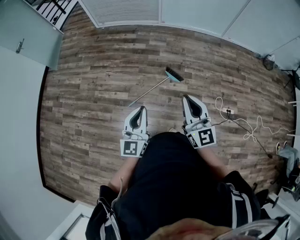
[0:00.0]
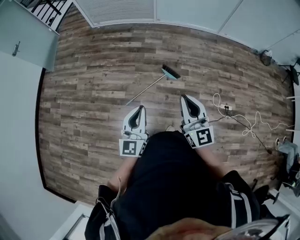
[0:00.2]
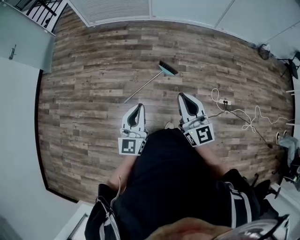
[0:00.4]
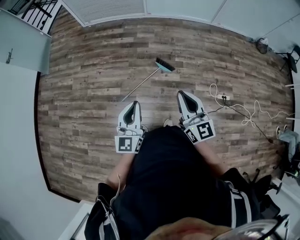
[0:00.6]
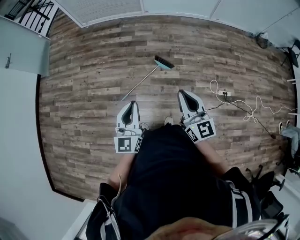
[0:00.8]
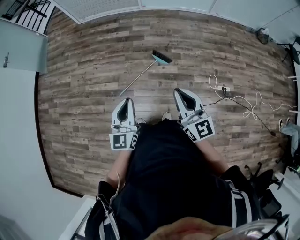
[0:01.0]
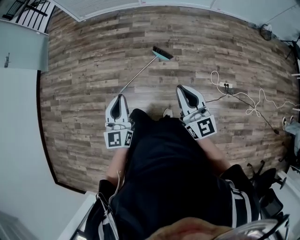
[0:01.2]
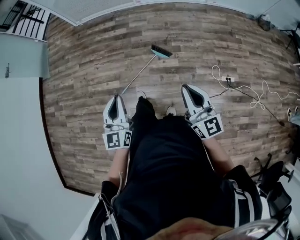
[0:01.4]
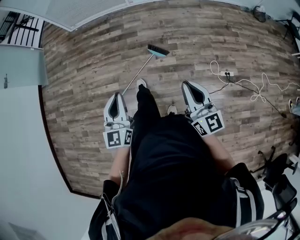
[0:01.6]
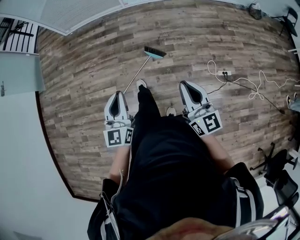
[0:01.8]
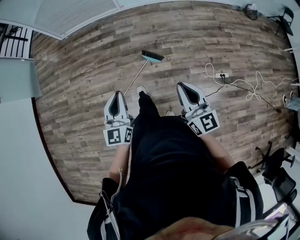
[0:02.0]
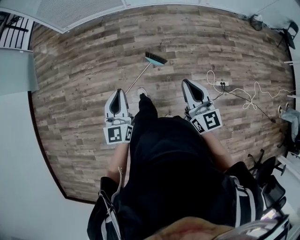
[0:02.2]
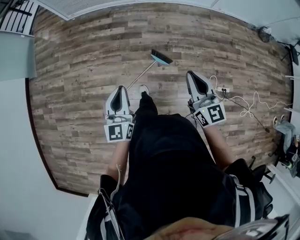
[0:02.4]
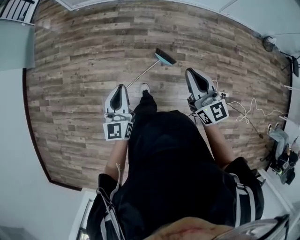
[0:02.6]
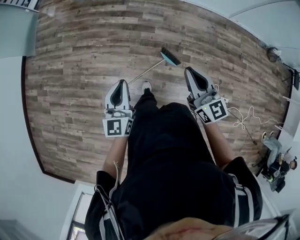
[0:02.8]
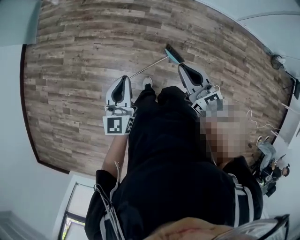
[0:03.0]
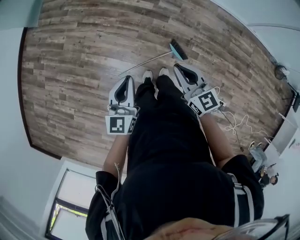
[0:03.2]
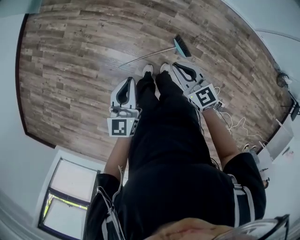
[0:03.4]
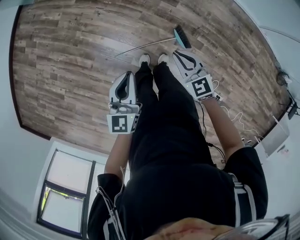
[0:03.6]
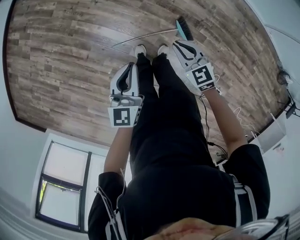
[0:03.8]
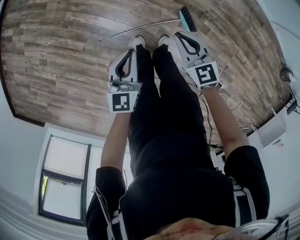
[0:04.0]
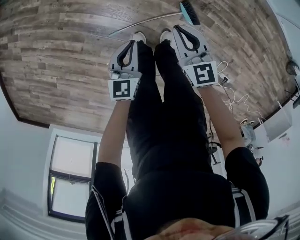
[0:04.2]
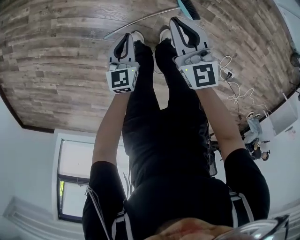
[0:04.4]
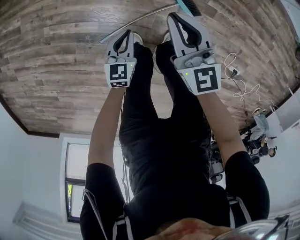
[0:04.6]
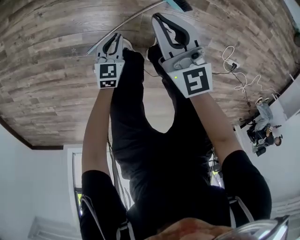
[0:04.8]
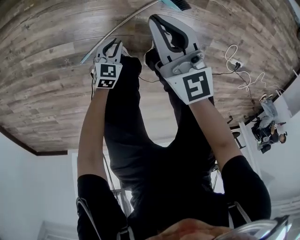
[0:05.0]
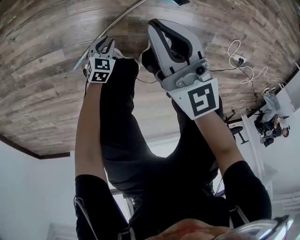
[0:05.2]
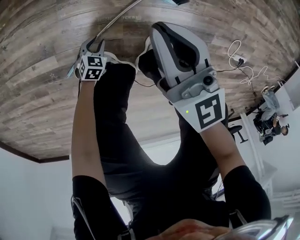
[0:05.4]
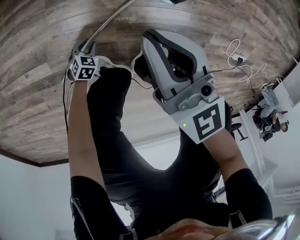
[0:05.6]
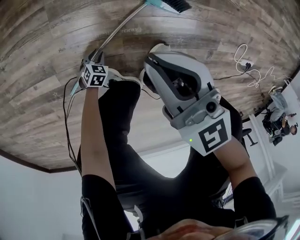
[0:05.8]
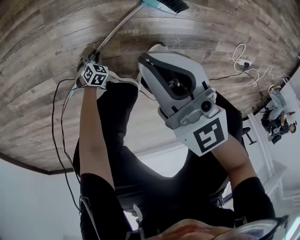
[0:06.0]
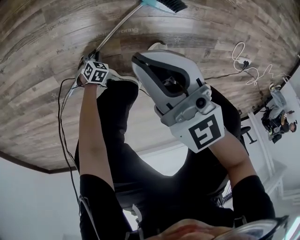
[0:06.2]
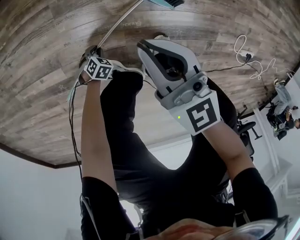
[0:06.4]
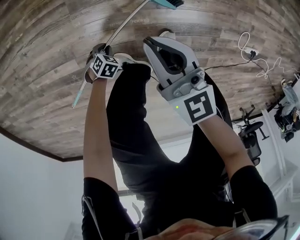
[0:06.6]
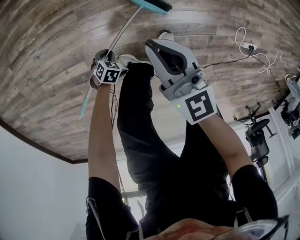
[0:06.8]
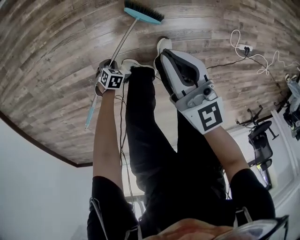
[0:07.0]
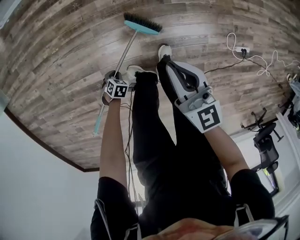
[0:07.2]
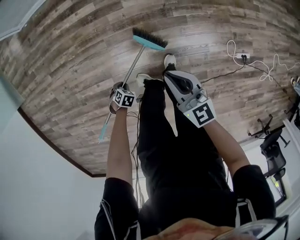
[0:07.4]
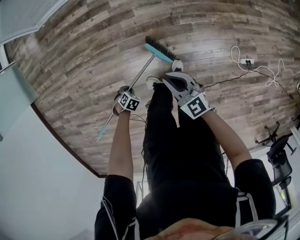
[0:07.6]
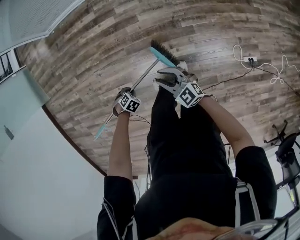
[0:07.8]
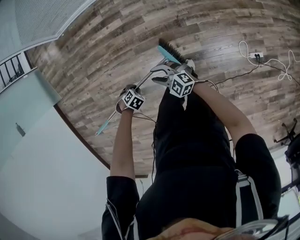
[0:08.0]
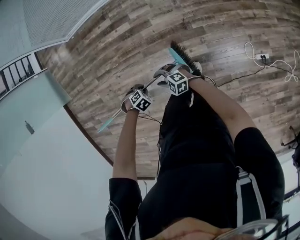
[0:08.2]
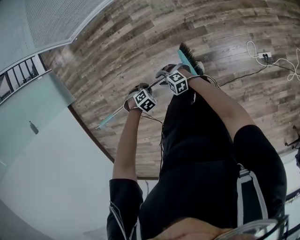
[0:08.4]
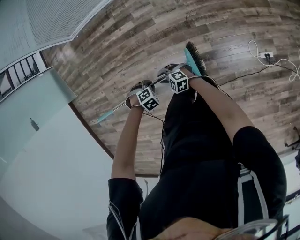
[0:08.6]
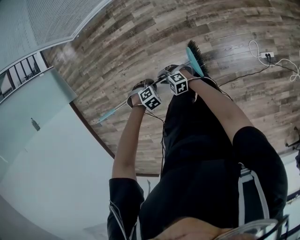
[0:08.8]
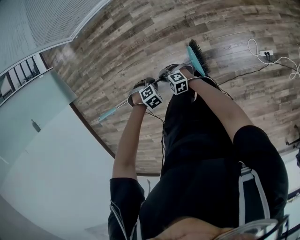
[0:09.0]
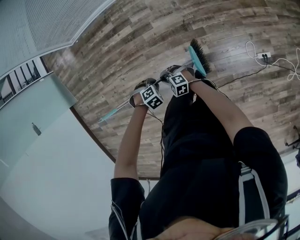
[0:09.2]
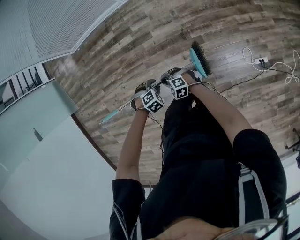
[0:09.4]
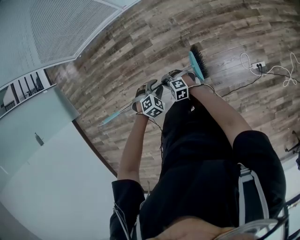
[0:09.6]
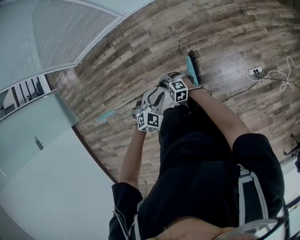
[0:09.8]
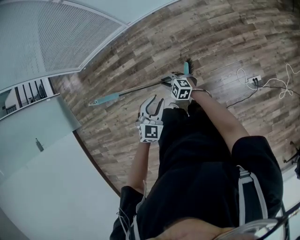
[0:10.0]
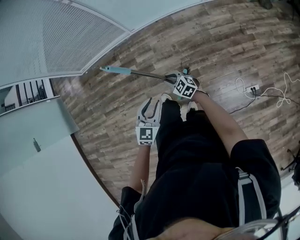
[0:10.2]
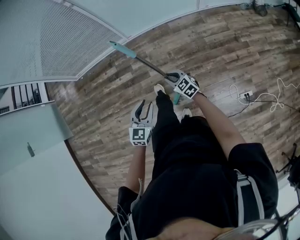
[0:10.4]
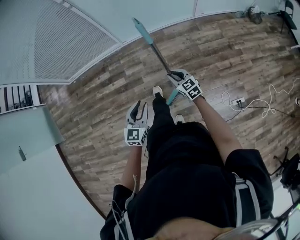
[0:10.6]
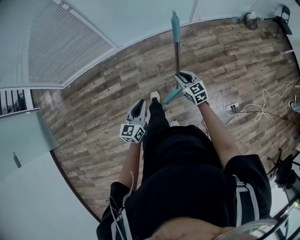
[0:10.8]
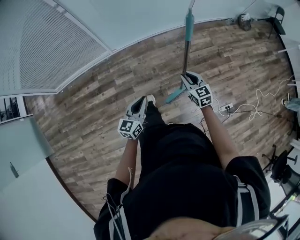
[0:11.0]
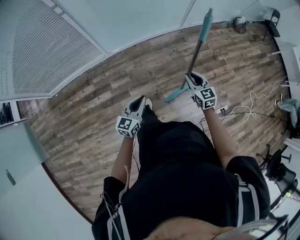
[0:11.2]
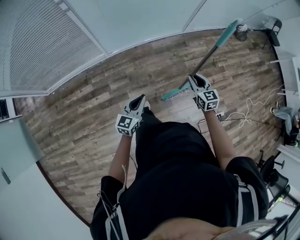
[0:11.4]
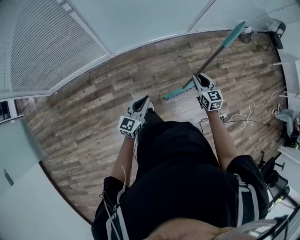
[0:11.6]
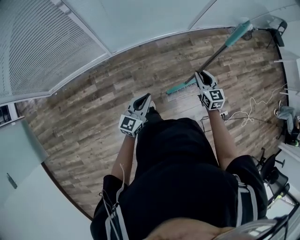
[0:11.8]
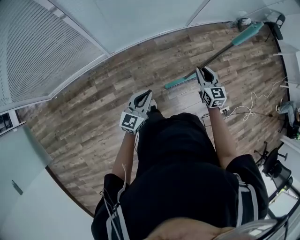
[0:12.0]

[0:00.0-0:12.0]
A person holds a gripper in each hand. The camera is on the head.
0:00.0 to 0:01.6: The right gripper shifts roughly 15 cm to the right. Meanwhile the left gripper moves to the right, about 10 cm.
0:01.6 to 0:03.0: Both grippers move forward and to the left, some 40 cm. The right gripper turns by about 30 degrees.
0:03.0 to 0:04.4: Both grippers travel together downward, approximately 35 cm. The left gripper swivels about 30 degrees.
0:04.4 to 0:06.0: The left gripper heads downward, covering some 60 cm, tips its fingers downward by about 40 degrees, and opens its fingers. Meanwhile the right gripper is displaced downward by about 30 cm.
0:06.0 to 0:07.6: The right gripper moves upward, some 35 cm; the left gripper is displaced upward by roughly 60 cm.
0:07.6 to 0:09.0: The right gripper changes place by approximately 15 cm, and turns by about 50 degrees; the left gripper is displaced upward by about 20 cm, and rotates approximately 30 degrees.
0:09.0 to 0:10.4: The right gripper moves roughly 35 cm, and swivels approximately 40 degrees; the left gripper travels upward by roughly 25 cm, and points its fingers roughly 60 degrees further upward.
0:10.4 to 0:12.0: The right gripper changes place by approximately 35 cm, and rotates approximately 40 degrees. The left gripper shifts by approximately 35 cm, changes its angle by some 30 degrees, and closes its fingers.

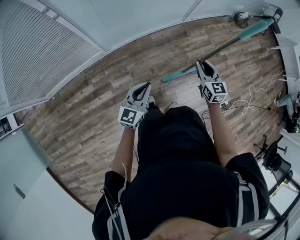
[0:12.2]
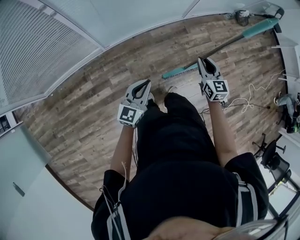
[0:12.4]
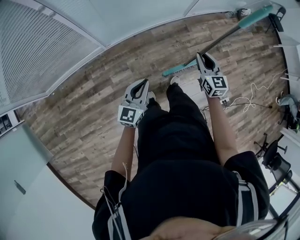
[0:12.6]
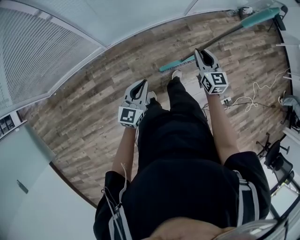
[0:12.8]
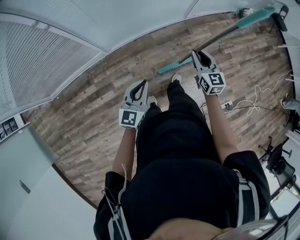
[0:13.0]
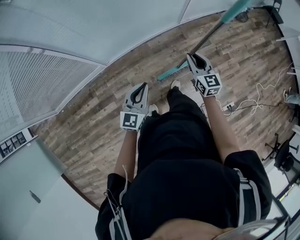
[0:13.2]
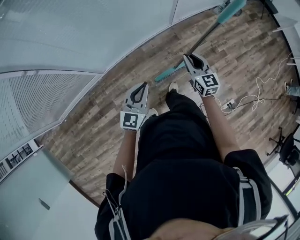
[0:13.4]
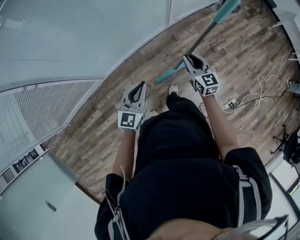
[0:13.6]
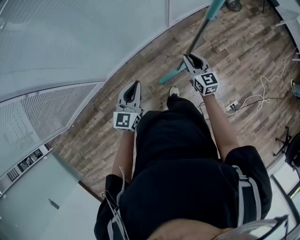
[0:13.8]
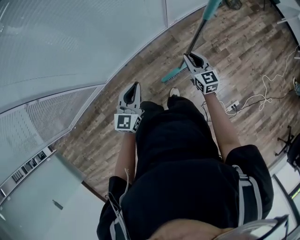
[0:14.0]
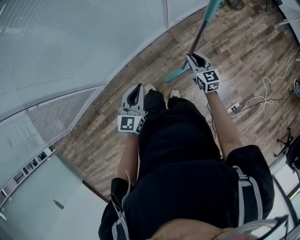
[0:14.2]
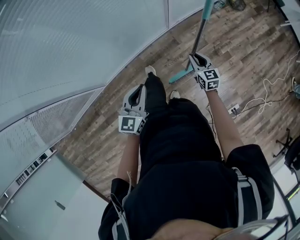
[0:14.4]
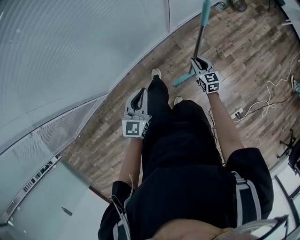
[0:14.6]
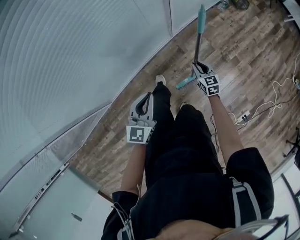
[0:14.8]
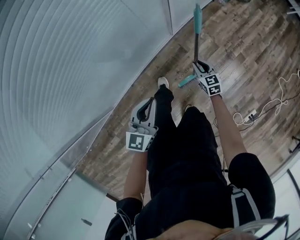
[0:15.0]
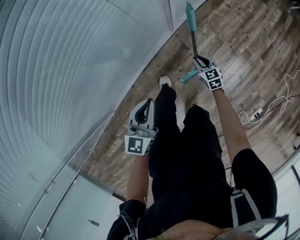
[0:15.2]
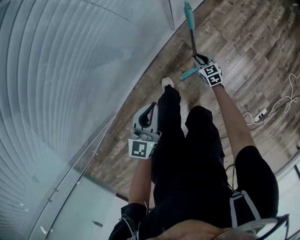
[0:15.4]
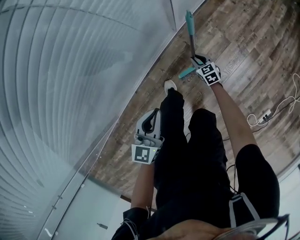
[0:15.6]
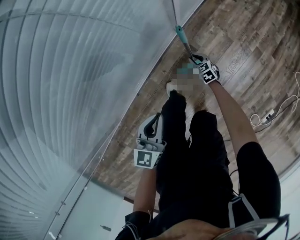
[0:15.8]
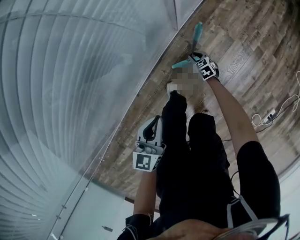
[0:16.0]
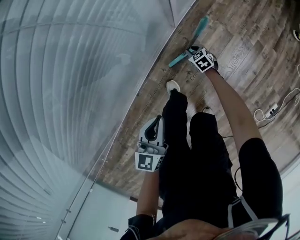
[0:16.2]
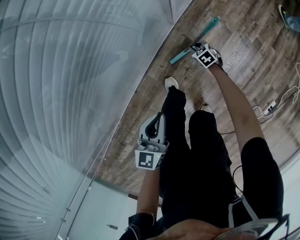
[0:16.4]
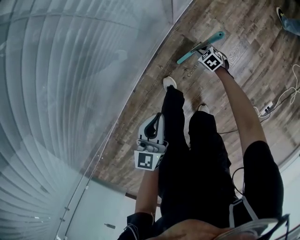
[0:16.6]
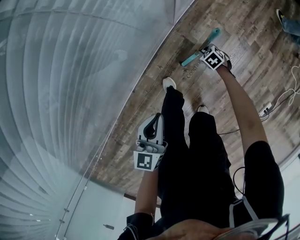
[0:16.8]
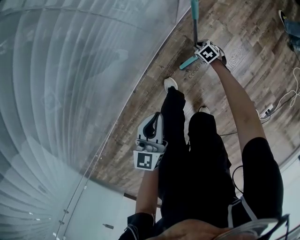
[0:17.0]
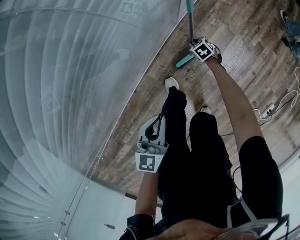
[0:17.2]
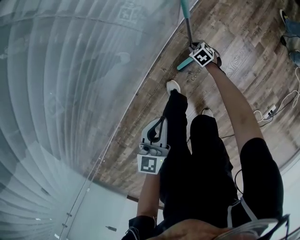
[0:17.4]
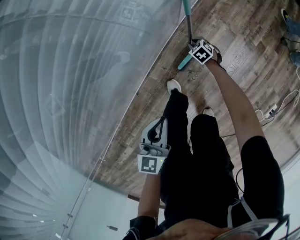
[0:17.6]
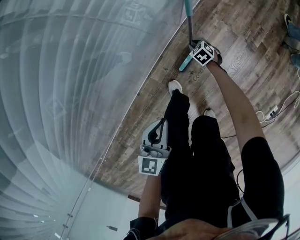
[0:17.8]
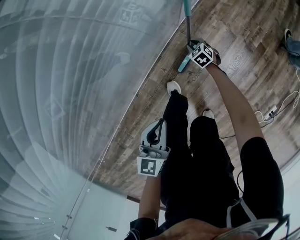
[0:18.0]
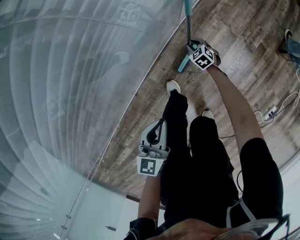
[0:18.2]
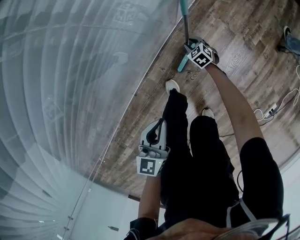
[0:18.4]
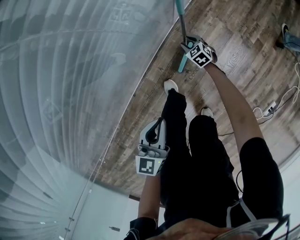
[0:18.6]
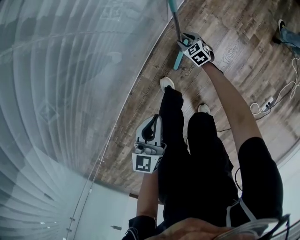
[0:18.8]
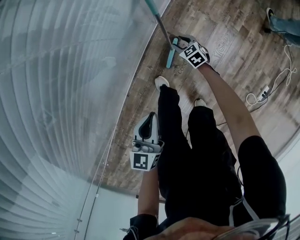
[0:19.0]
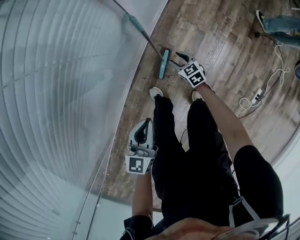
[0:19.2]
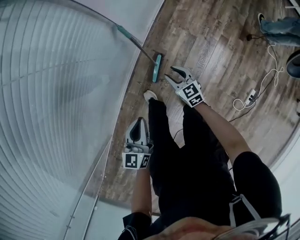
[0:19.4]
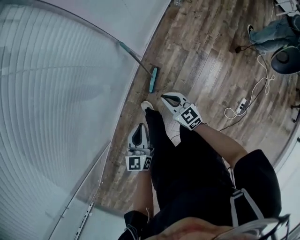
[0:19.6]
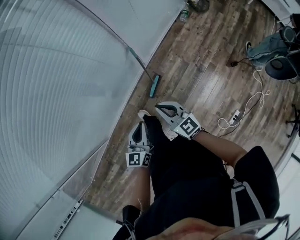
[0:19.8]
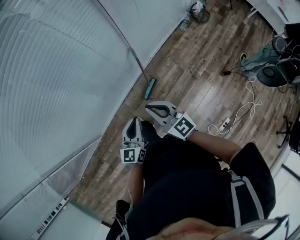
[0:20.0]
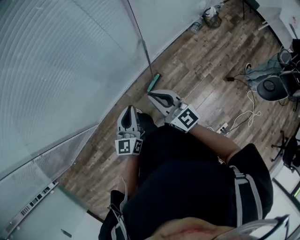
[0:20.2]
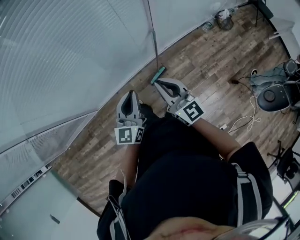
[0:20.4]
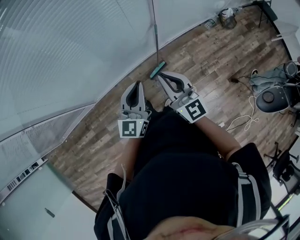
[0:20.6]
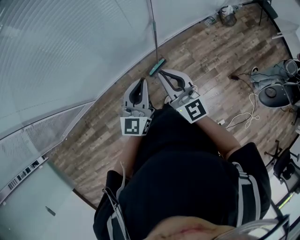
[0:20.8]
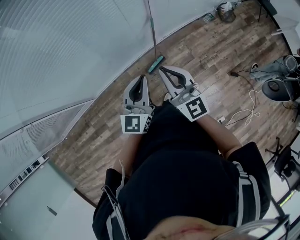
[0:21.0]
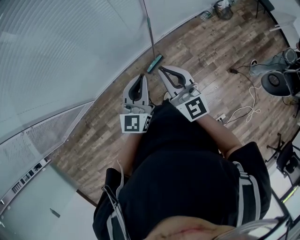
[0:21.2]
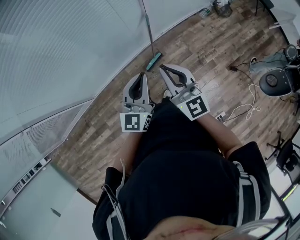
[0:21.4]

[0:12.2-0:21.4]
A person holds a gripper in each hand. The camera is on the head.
0:12.2 to 0:13.8: The right gripper goes some 25 cm to the right and forward. Meanwhile the left gripper is displaced forward and to the right by roughly 30 cm.
0:13.8 to 0:15.2: The left gripper is displaced forward and downward by some 35 cm. Meanwhile the right gripper travels downward and forward by roughly 50 cm, and swivels roughly 20 degrees.
0:15.2 to 0:16.8: The left gripper is displaced downward by about 10 cm; the right gripper goes roughly 20 cm downward, and tips its fingers downward by roughly 30 degrees.
0:16.8 to 0:18.4: The right gripper is displaced forward and to the left by about 10 cm.
0:18.4 to 0:19.8: The right gripper heads upward, covering approximately 60 cm, angles its fingers upward, by about 50 degrees, and closes. The left gripper is displaced upward and to the right by approximately 30 cm.
0:19.8 to 0:21.4: Both grippers travel together upward, some 20 cm. The right gripper changes its angle by some 20 degrees. The left gripper changes its angle by roughly 20 degrees.

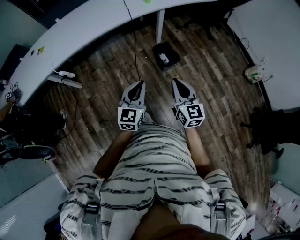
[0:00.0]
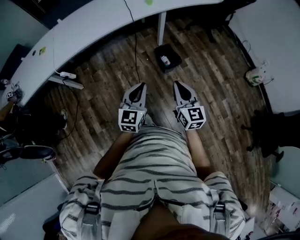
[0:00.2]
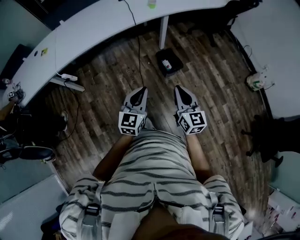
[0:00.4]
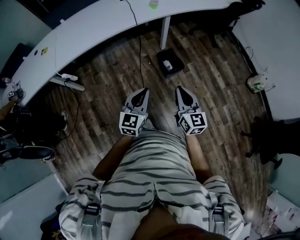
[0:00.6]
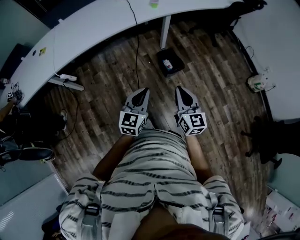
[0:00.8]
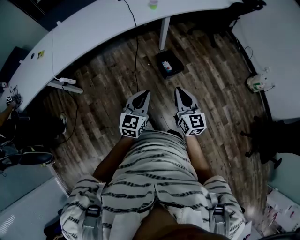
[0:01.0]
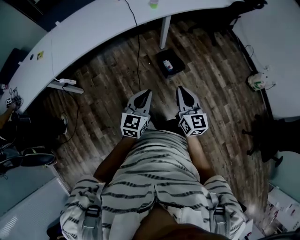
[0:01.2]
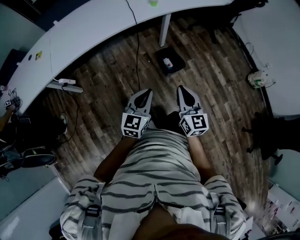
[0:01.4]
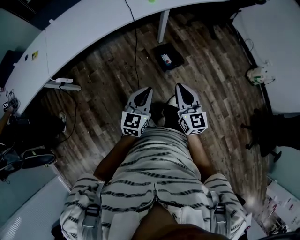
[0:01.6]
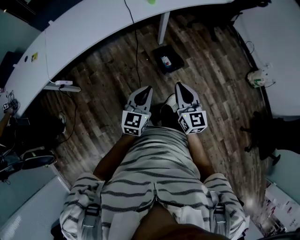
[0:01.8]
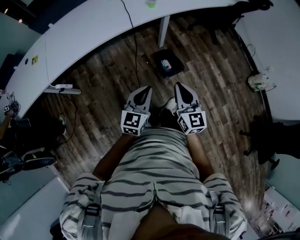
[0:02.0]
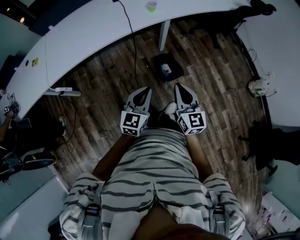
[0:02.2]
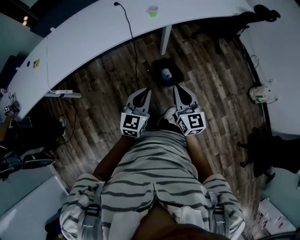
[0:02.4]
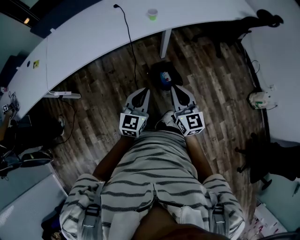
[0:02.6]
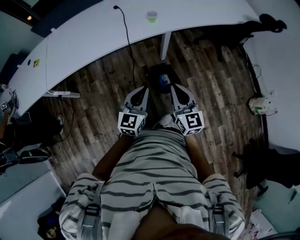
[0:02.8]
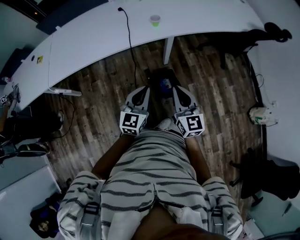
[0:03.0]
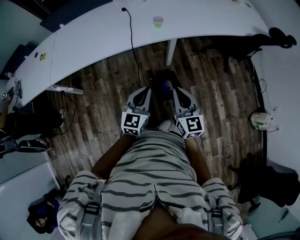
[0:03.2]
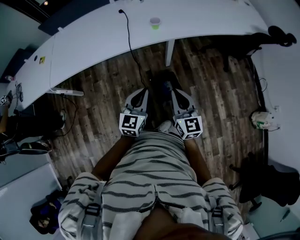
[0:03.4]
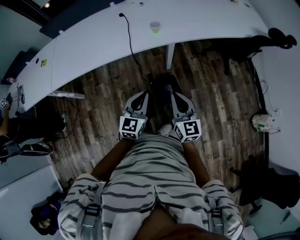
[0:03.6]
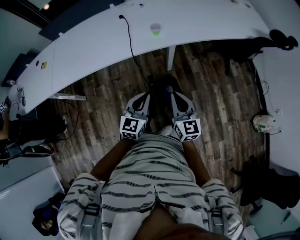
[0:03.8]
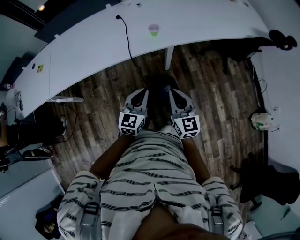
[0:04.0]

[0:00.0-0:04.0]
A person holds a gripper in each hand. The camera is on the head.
0:00.0 to 0:01.4: Both grippers travel together forward, approximately 5 cm.
0:01.4 to 0:02.6: Both grippers move forward, about 20 cm.
0:02.6 to 0:04.0: The grippers both shift forward by some 15 cm.
